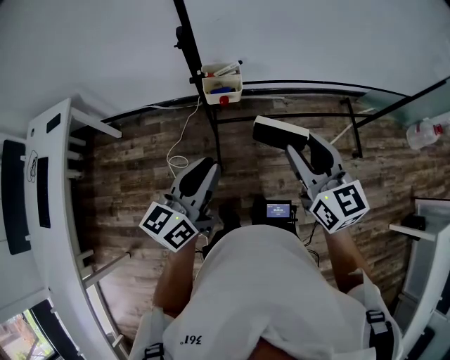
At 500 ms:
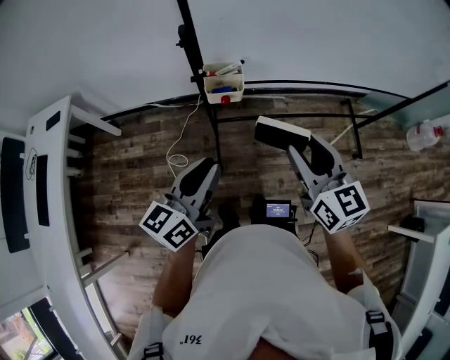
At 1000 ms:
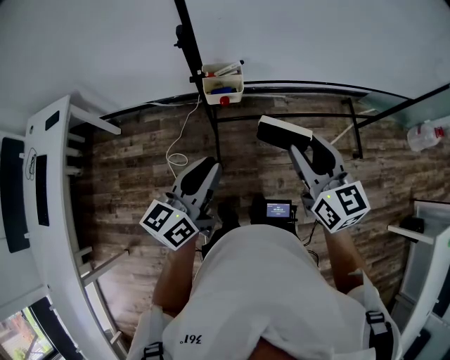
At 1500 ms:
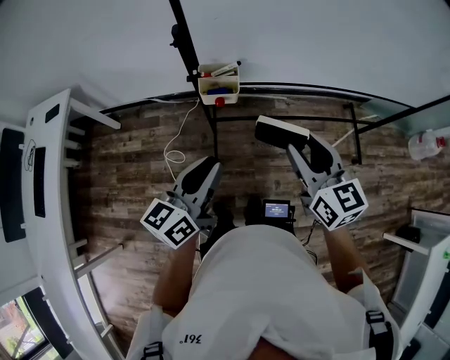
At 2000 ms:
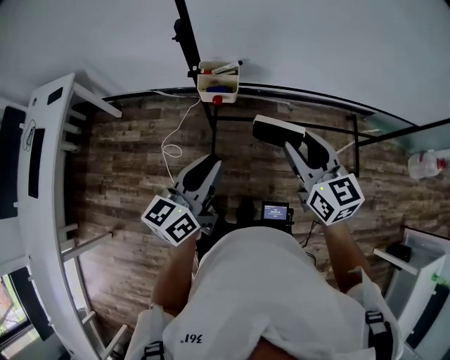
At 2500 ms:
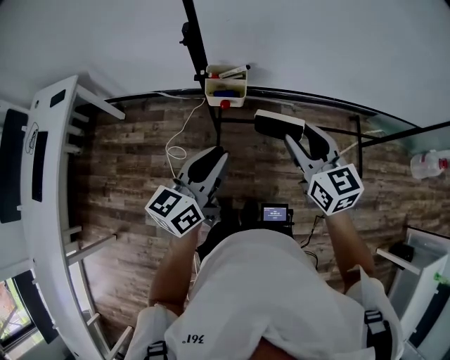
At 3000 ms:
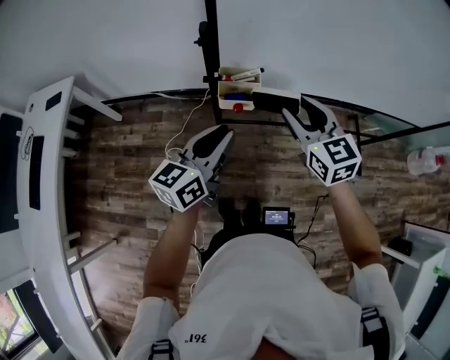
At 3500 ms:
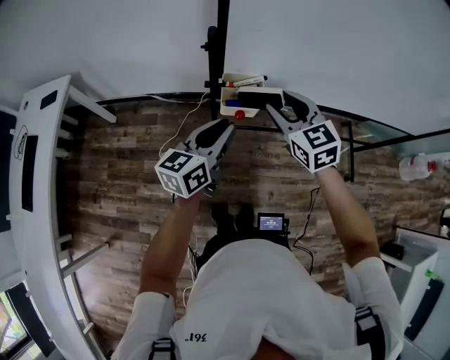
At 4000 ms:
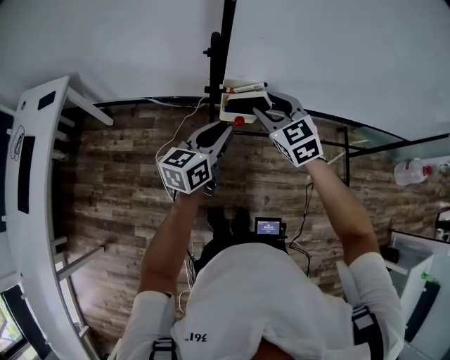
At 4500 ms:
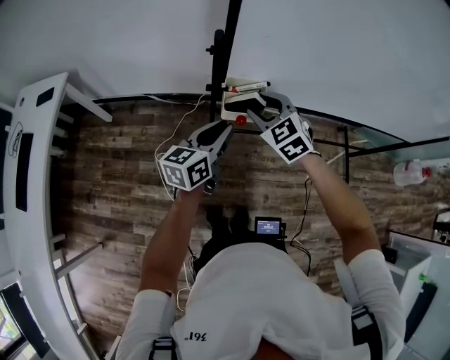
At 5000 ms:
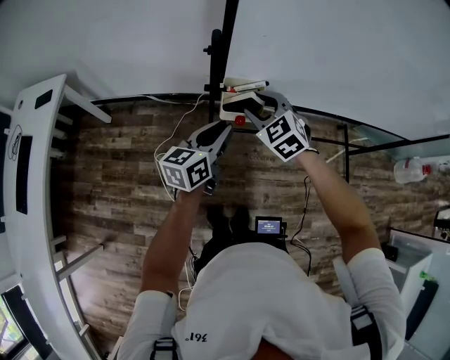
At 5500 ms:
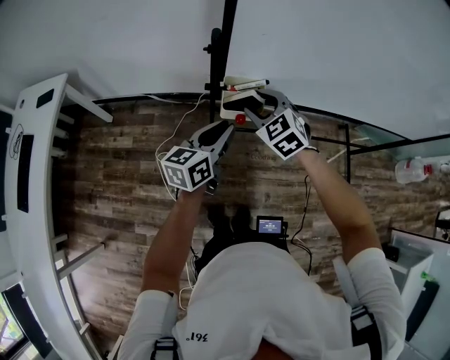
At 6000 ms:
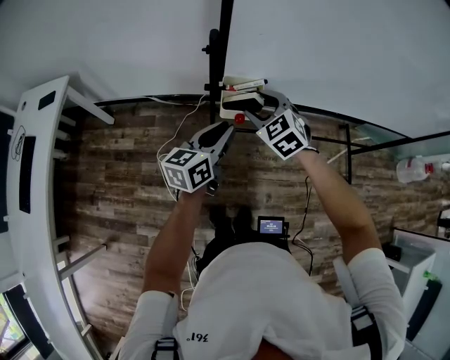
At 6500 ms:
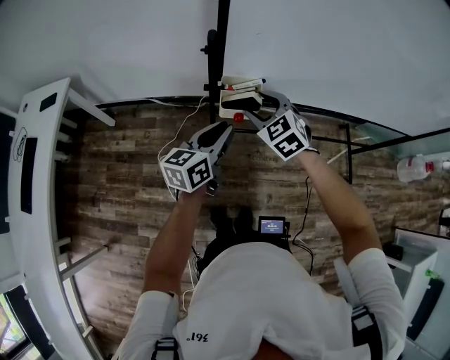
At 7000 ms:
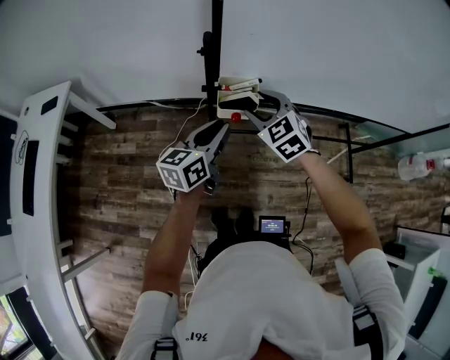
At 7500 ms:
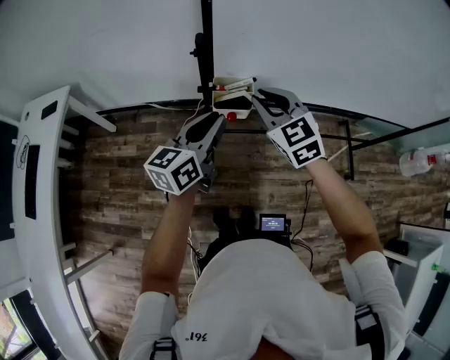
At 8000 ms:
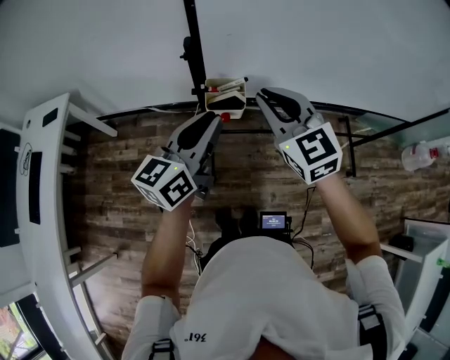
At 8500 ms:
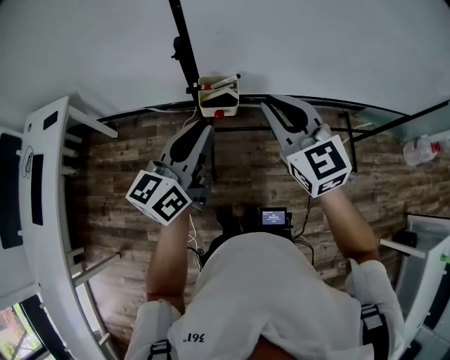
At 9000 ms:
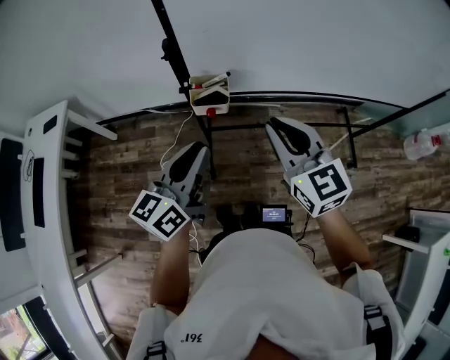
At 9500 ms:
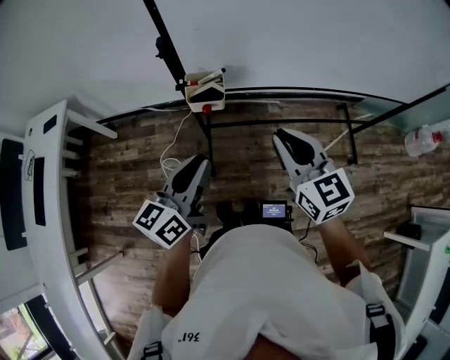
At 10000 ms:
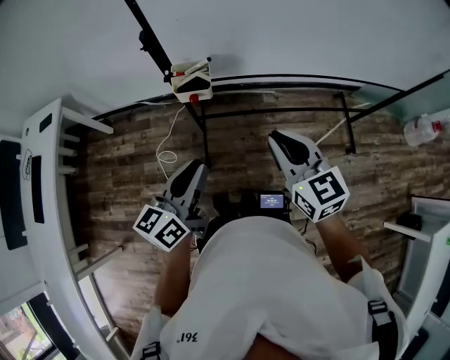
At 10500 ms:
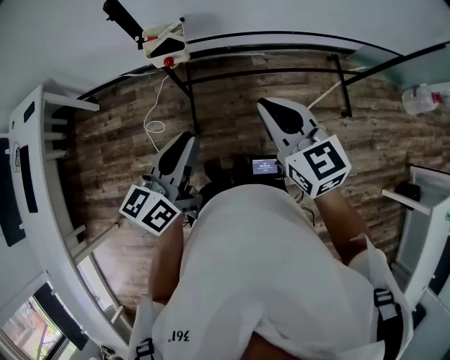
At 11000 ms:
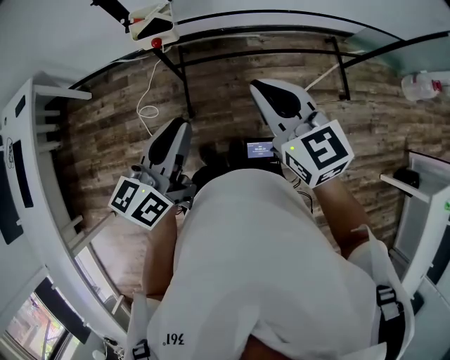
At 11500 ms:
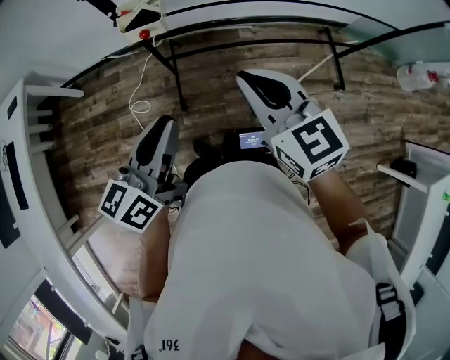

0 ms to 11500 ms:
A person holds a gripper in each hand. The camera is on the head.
0 ms to 2000 ms: The left gripper heads to the right, covering approximately 5 cm; the right gripper travels forward by approximately 5 cm.
2000 ms to 4000 ms: The left gripper is displaced forward by roughly 15 cm, while the right gripper heads forward and to the left, covering about 20 cm, and swivels some 30 degrees.
4000 ms to 6000 ms: The grippers stay close to where they were, moving slightly.
6000 ms to 7500 ms: The two grippers go some 10 cm upward. The right gripper closes up.
7500 ms to 9500 ms: The left gripper moves backward, roughly 15 cm, while the right gripper goes approximately 20 cm backward and to the right, and swivels roughly 30 degrees.
9500 ms to 11500 ms: The left gripper travels backward and to the right by roughly 10 cm; the right gripper moves backward, some 5 cm.

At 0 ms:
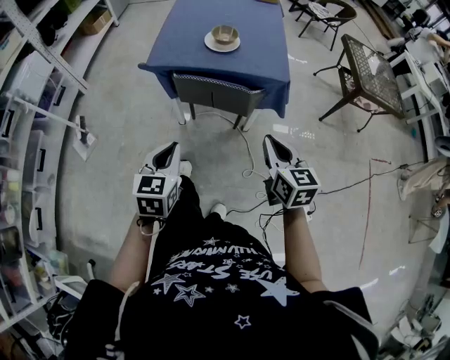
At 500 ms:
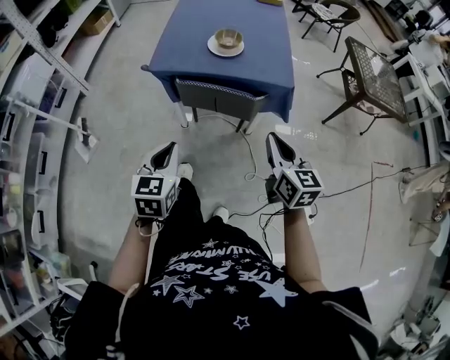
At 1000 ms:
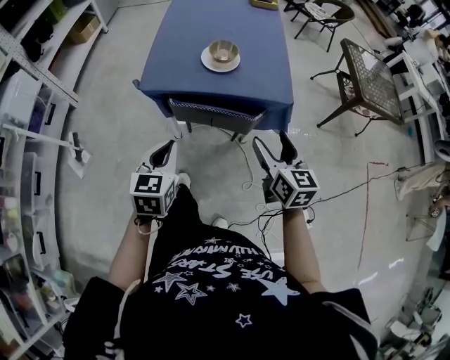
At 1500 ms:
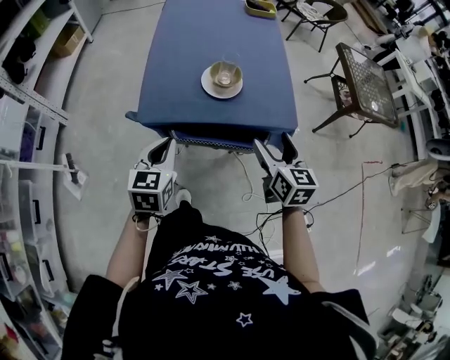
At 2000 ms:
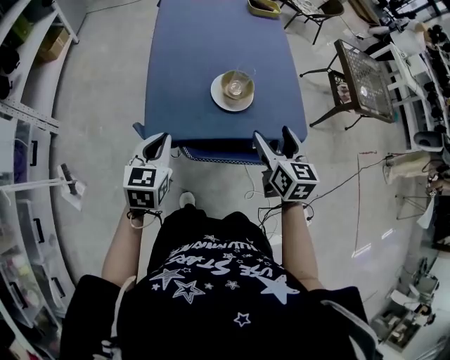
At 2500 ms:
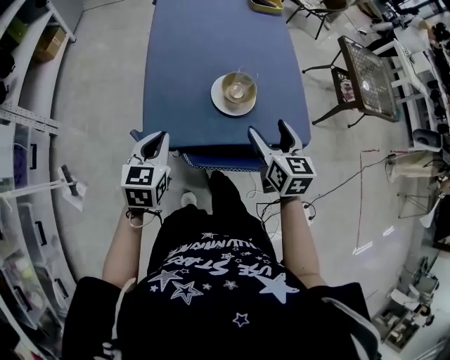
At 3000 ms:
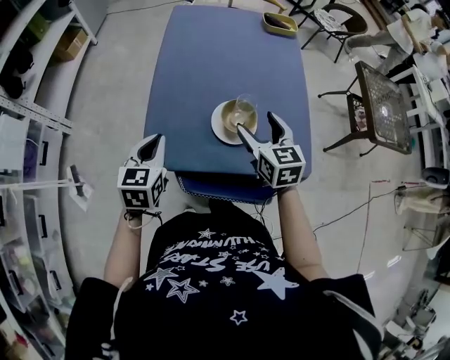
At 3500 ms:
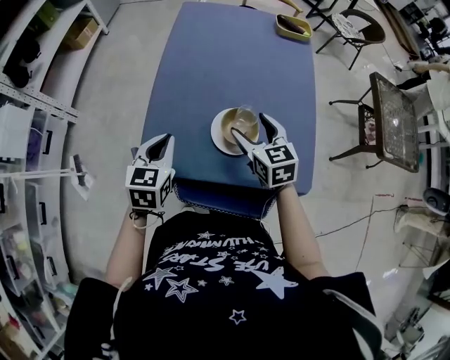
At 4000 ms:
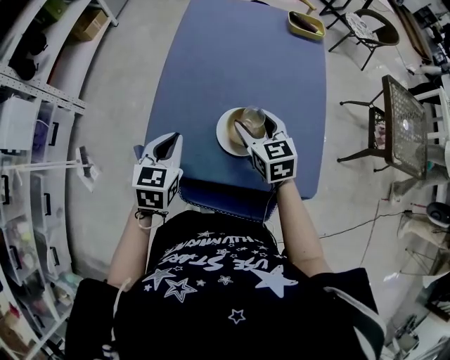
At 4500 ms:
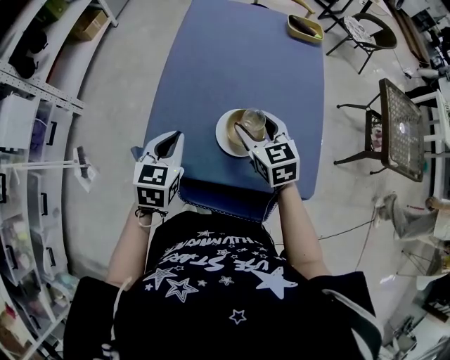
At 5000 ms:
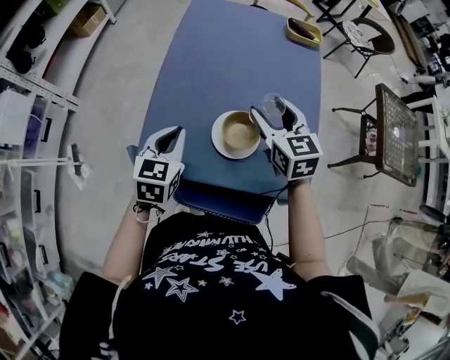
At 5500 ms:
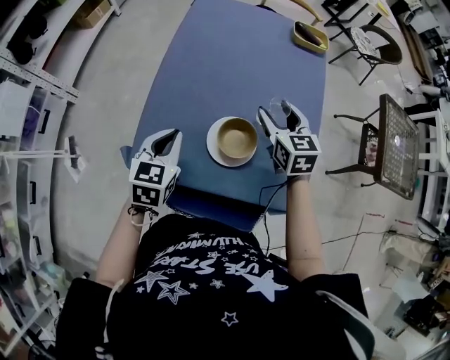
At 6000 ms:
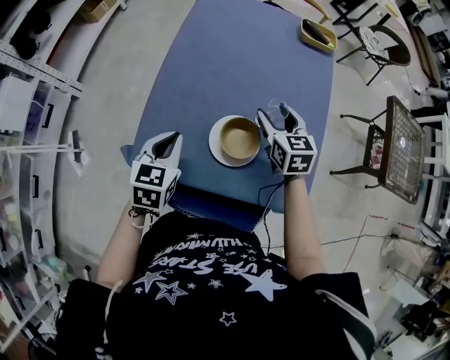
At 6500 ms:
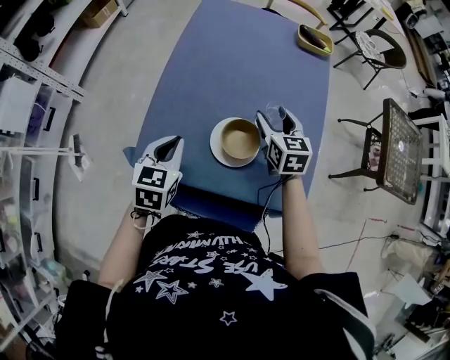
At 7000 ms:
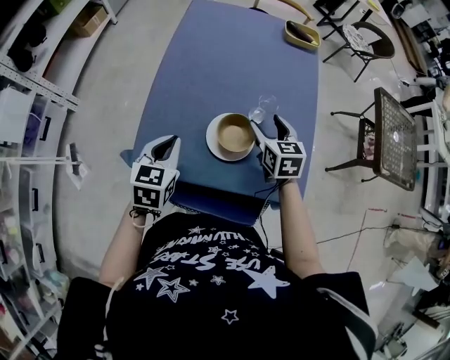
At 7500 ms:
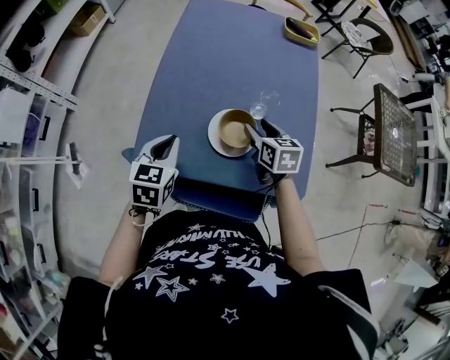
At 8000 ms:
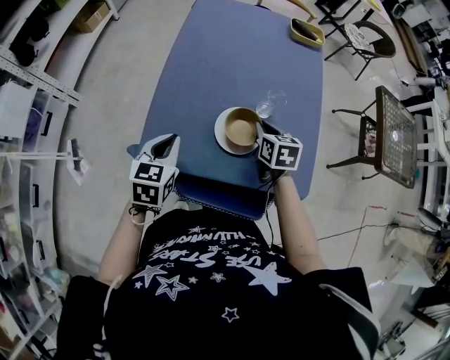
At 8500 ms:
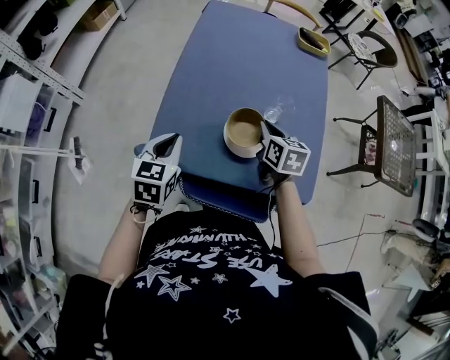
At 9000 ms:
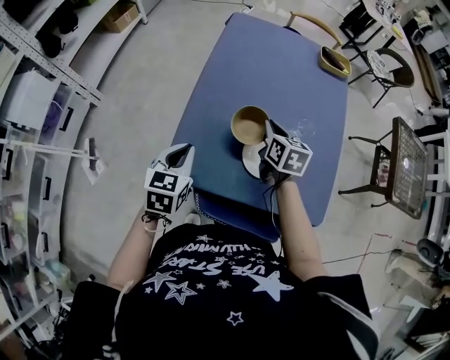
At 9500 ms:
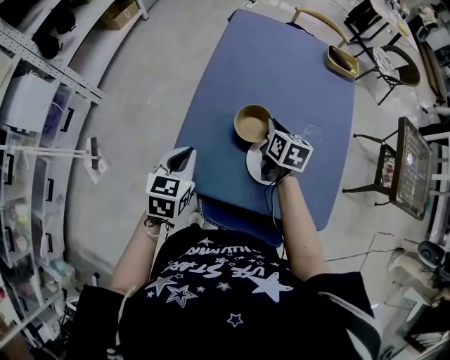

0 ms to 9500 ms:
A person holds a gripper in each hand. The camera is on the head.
0 ms to 2000 ms: The grippers both shift forward by approximately 35 cm. The right gripper opens up.
2000 ms to 4000 ms: The left gripper is displaced forward and to the right by some 15 cm; the right gripper travels forward by about 20 cm, and rotates some 30 degrees.
4000 ms to 5500 ms: The right gripper goes some 10 cm to the right and forward.
5500 ms to 7500 ms: The right gripper moves downward and backward, approximately 10 cm.
7500 ms to 9500 ms: The right gripper heads forward and to the left, covering roughly 10 cm, and closes; the left gripper goes about 5 cm to the left.

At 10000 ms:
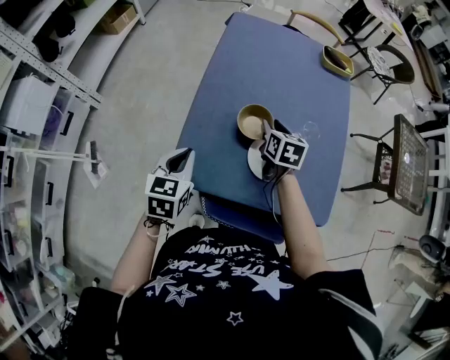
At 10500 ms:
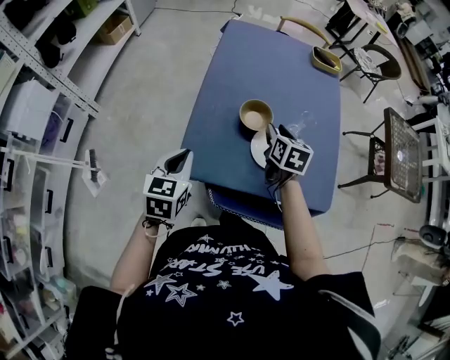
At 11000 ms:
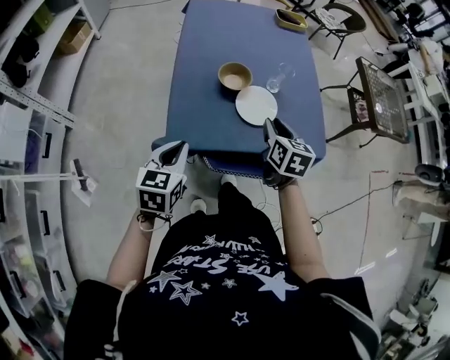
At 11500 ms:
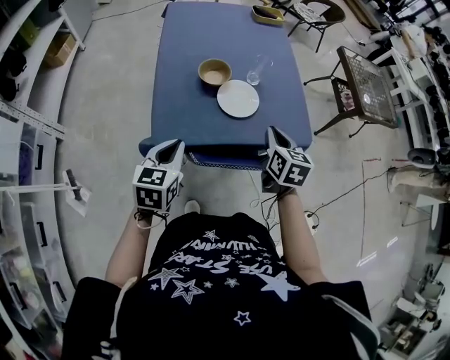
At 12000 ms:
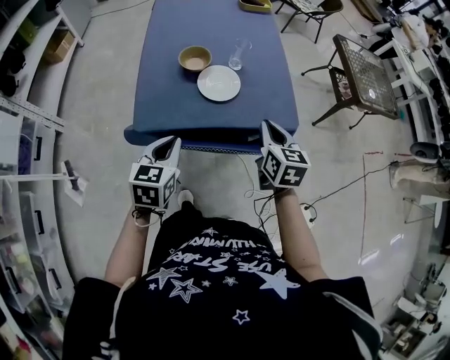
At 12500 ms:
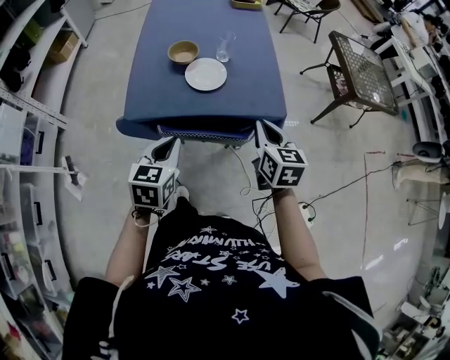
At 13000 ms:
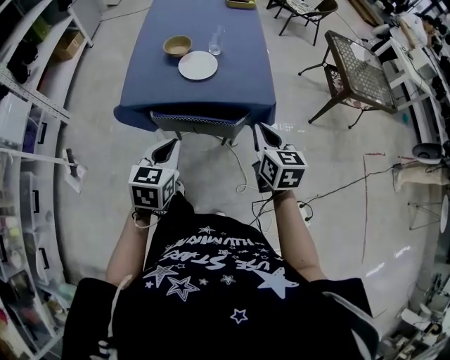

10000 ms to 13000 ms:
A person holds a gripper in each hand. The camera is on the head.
10000 ms to 11500 ms: The left gripper is displaced backward by some 10 cm, while the right gripper shifts some 25 cm backward and to the right, turns by some 20 degrees, and closes.
11500 ms to 13000 ms: Both grippers travel together to the right and backward, about 20 cm.

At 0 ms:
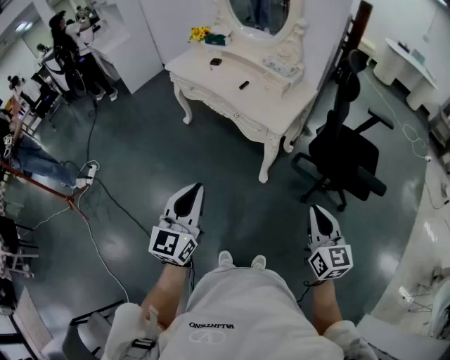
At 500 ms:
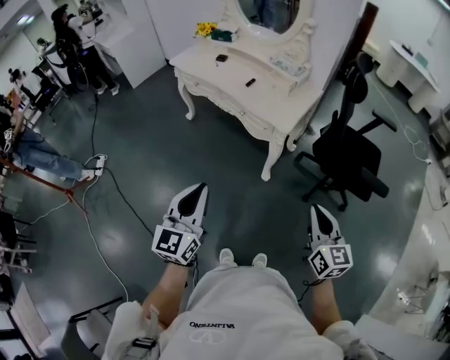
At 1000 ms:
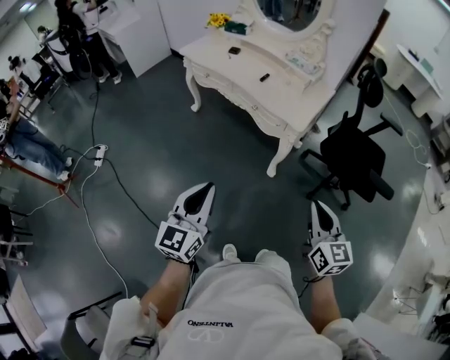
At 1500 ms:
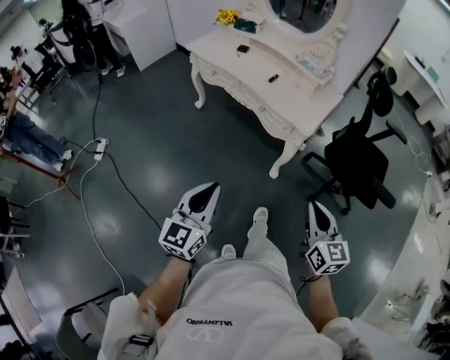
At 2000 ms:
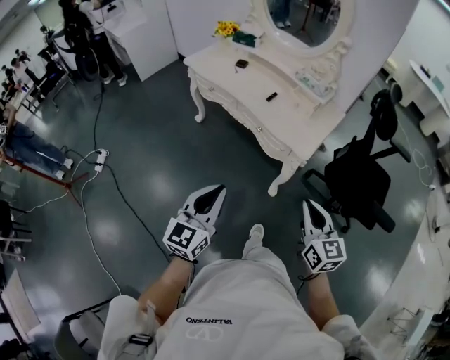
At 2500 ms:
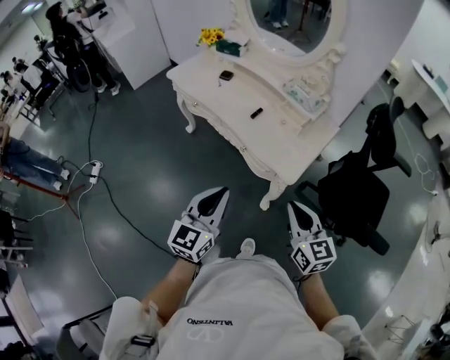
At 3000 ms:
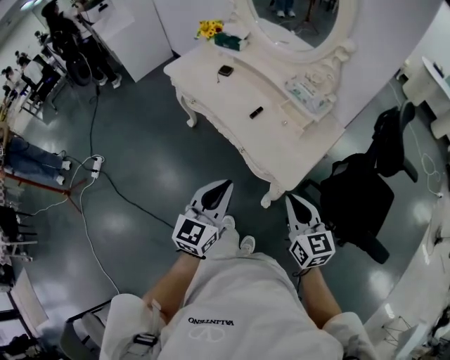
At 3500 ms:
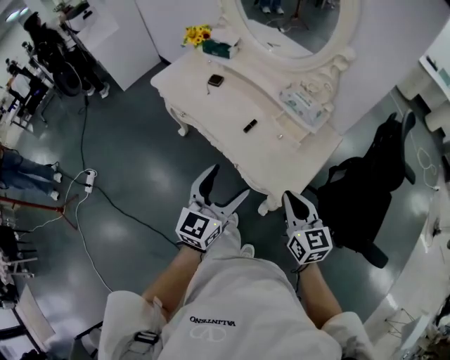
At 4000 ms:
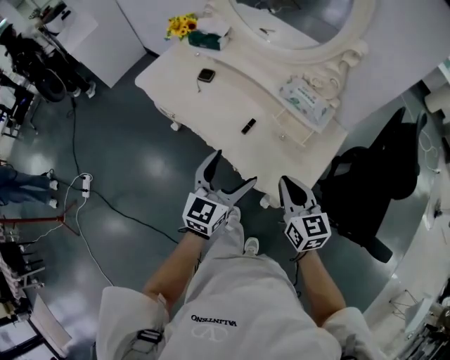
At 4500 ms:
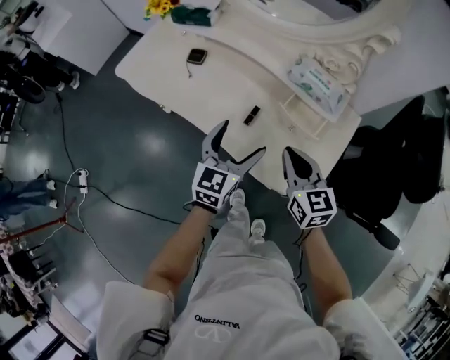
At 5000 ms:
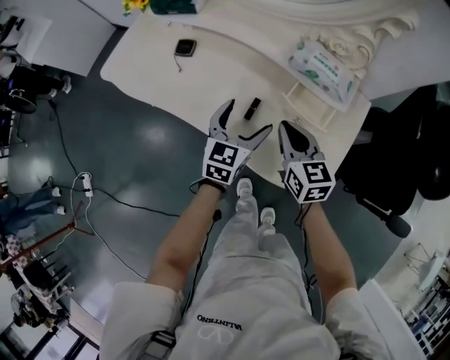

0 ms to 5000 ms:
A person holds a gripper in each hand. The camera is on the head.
0 ms to 2500 ms: The grippers both shift forward by about 30 cm.
2500 ms to 5000 ms: The pair of grippers is taken forward, about 40 cm. The left gripper travels downward by roughly 20 cm, swivels roughly 20 degrees, and opens.
